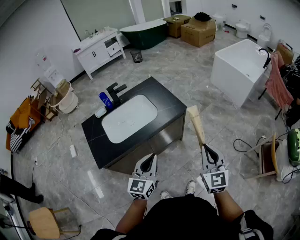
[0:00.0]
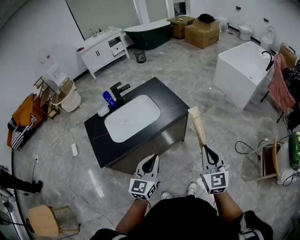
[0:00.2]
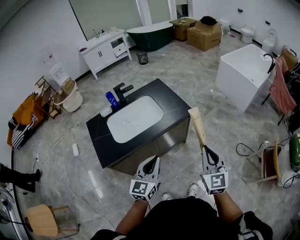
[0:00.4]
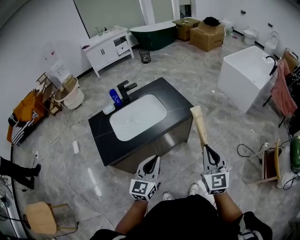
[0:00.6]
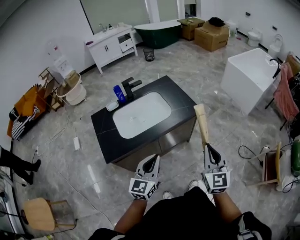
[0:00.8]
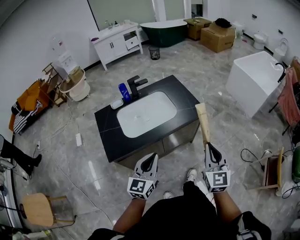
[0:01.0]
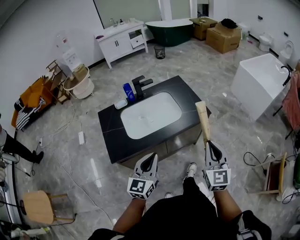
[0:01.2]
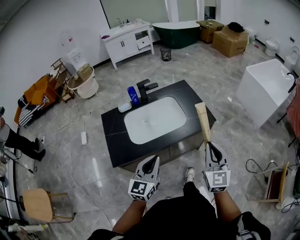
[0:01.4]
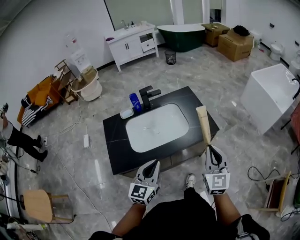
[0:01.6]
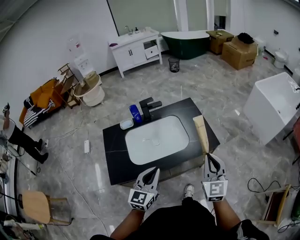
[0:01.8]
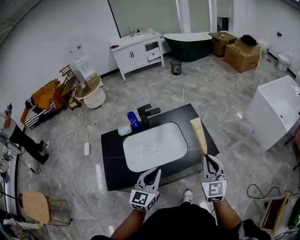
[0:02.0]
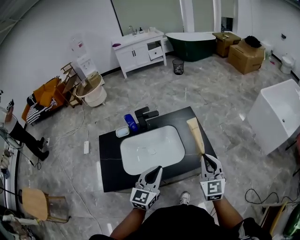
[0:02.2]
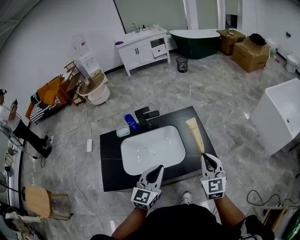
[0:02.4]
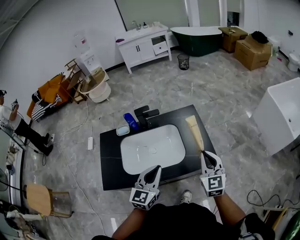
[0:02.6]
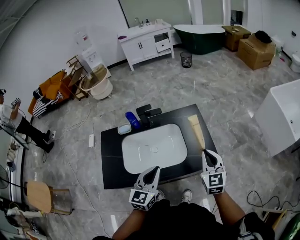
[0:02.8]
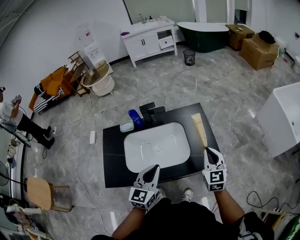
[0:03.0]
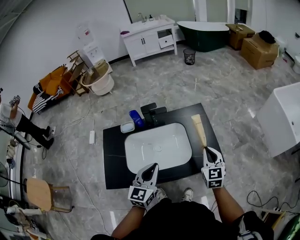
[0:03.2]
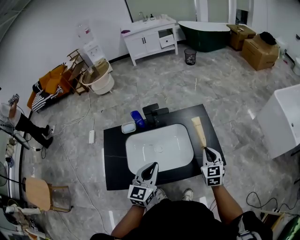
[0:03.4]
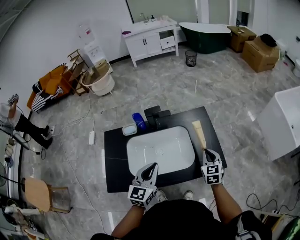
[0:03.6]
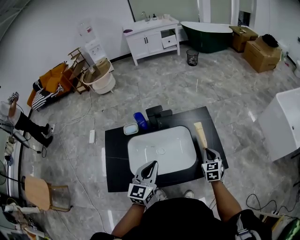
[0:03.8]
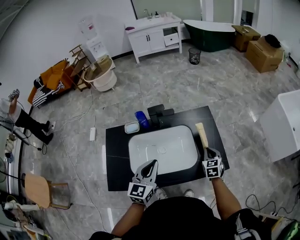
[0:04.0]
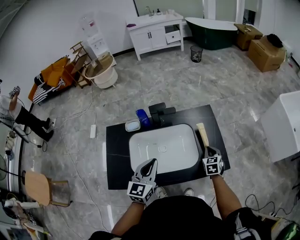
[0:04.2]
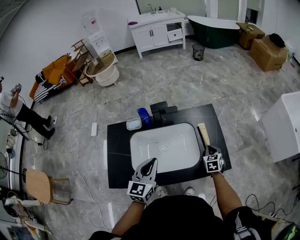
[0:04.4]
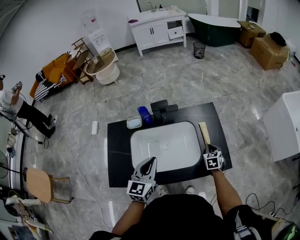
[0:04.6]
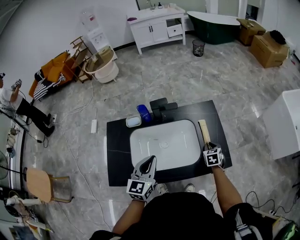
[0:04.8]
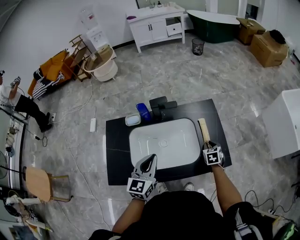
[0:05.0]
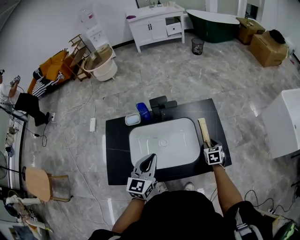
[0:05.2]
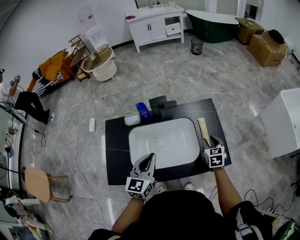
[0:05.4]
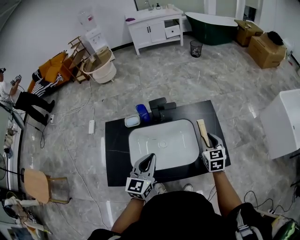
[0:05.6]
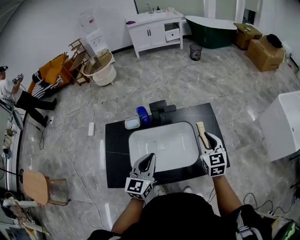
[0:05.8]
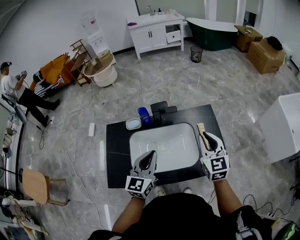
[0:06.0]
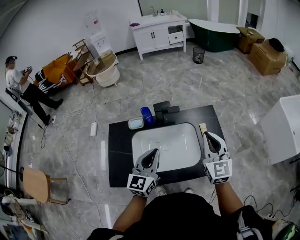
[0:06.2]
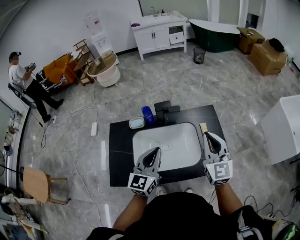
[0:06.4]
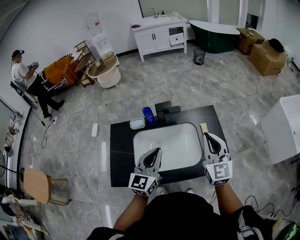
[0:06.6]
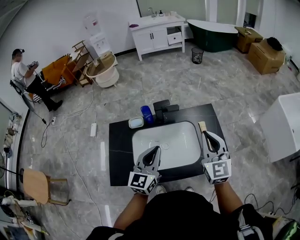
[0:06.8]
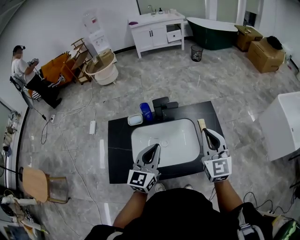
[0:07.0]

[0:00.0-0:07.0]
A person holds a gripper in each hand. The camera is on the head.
0:00.0 to 0:01.4: The left gripper moves to the left, about 10 cm. The right gripper shifts some 15 cm to the left and forward.
0:01.4 to 0:02.8: The grippers both shift forward by about 25 cm.
0:02.8 to 0:04.2: The right gripper goes approximately 20 cm downward and forward, and swivels some 30 degrees. Meanwhile the left gripper moves to the left and forward, about 10 cm.
0:04.2 to 0:05.6: The right gripper is displaced upward by some 10 cm, and opens.
0:05.6 to 0:07.0: The left gripper moves upward, some 5 cm. The right gripper is displaced upward by roughly 20 cm, changes its angle by about 30 degrees, and closes.

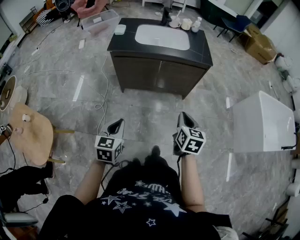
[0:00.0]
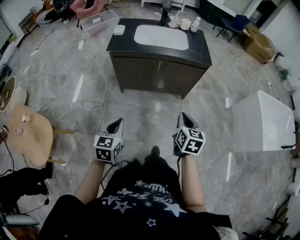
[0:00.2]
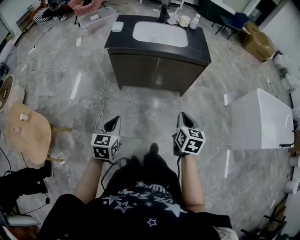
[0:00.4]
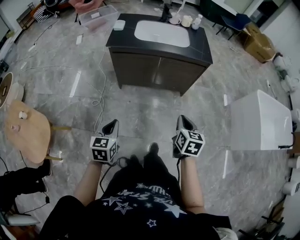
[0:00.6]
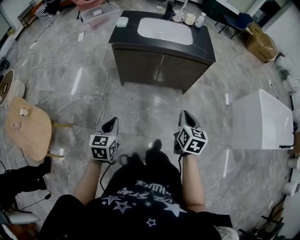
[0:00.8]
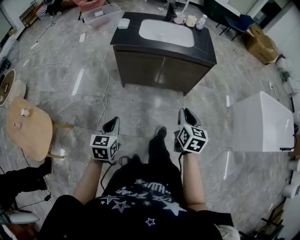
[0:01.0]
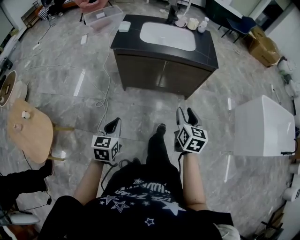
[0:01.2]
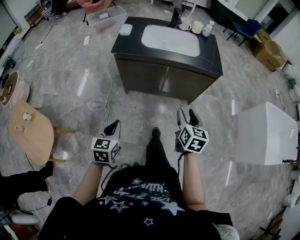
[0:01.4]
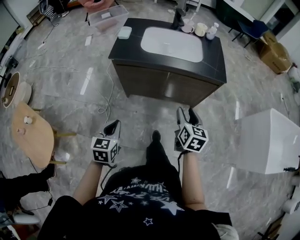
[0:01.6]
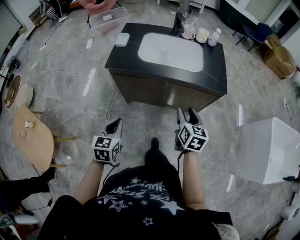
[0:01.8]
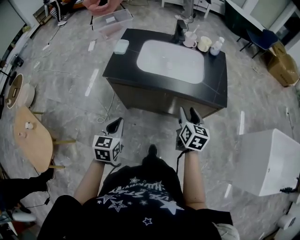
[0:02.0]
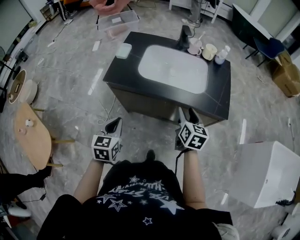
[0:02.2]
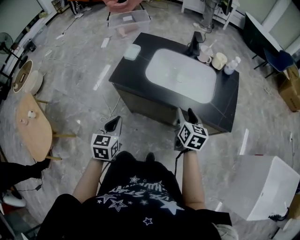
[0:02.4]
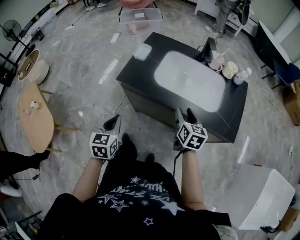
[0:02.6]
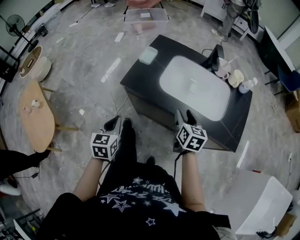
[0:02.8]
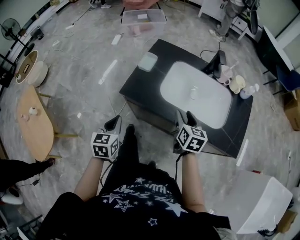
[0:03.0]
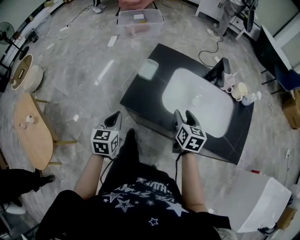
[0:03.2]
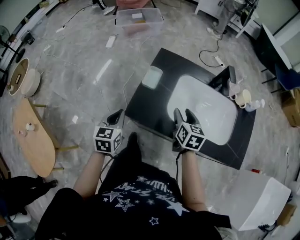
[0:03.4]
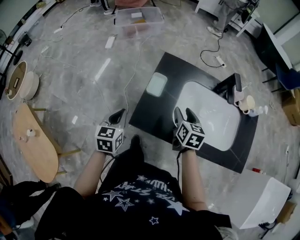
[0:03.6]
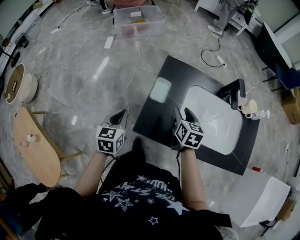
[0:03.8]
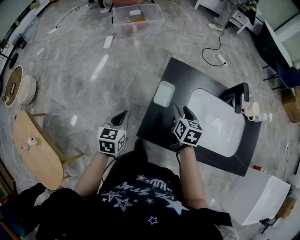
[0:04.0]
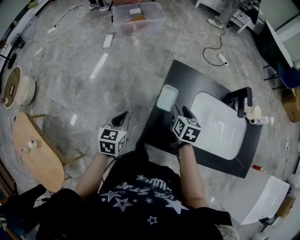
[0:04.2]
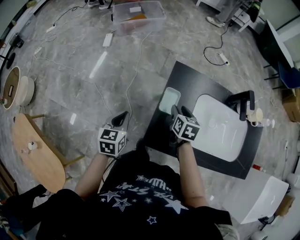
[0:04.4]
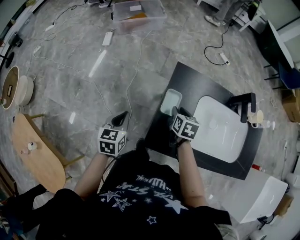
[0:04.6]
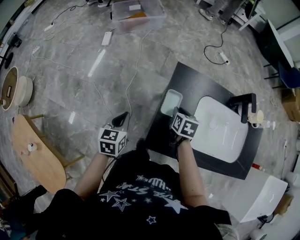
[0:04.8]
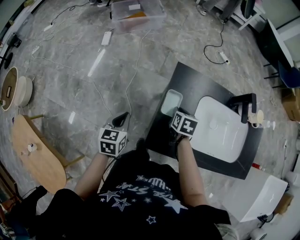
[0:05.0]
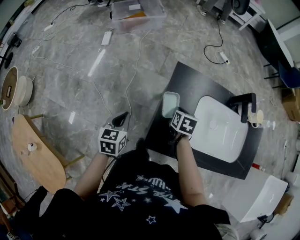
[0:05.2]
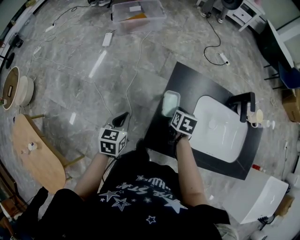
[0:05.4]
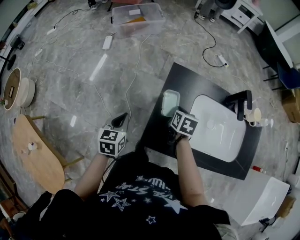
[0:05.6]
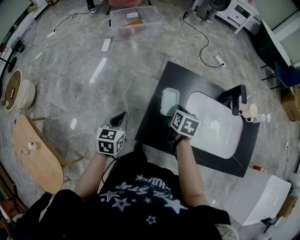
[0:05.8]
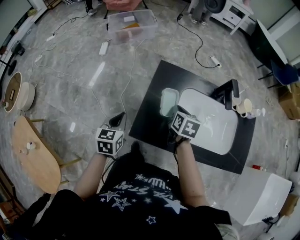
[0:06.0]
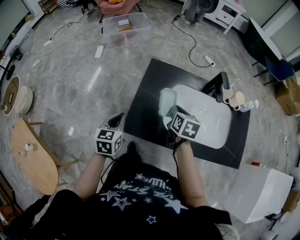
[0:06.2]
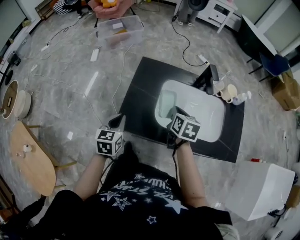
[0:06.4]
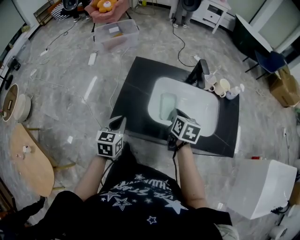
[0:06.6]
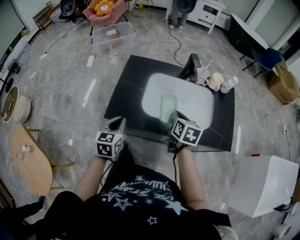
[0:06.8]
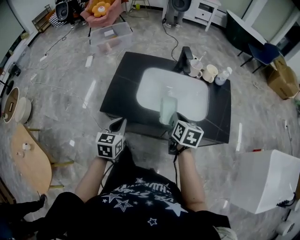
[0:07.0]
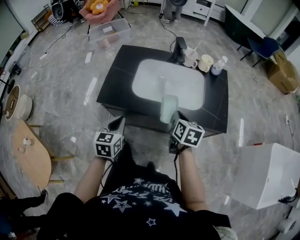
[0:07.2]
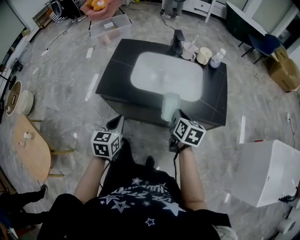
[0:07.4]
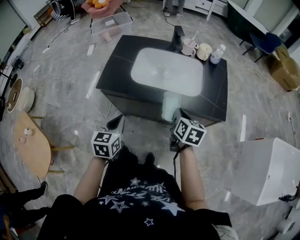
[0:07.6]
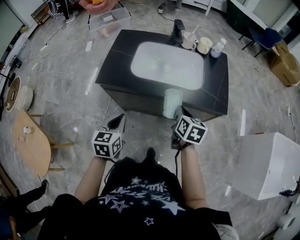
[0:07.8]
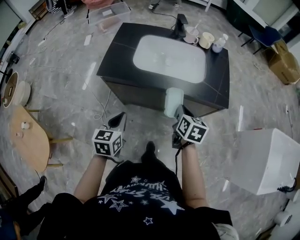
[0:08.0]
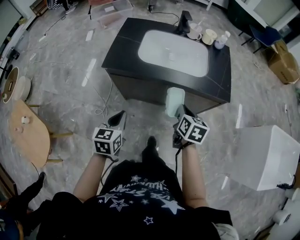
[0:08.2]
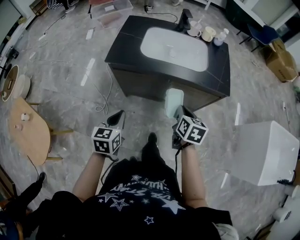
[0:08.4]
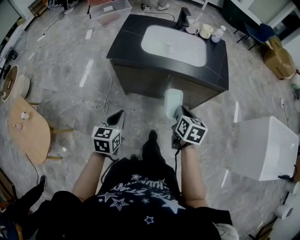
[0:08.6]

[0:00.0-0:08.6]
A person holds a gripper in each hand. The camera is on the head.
0:00.0 to 0:01.4: The right gripper goes some 10 cm forward, and opens, while the left gripper heads forward, covering approximately 5 cm.
0:01.4 to 0:02.8: The grippers both shift forward by some 35 cm. The right gripper swivels roughly 20 degrees, while the left gripper swivels approximately 20 degrees.
0:02.8 to 0:04.4: Both grippers travel together forward and to the left, about 35 cm.
0:04.4 to 0:05.8: The right gripper closes.
0:05.8 to 0:07.2: Both grippers move to the right and backward, roughly 35 cm.
0:07.2 to 0:08.6: The two grippers go roughly 25 cm backward.

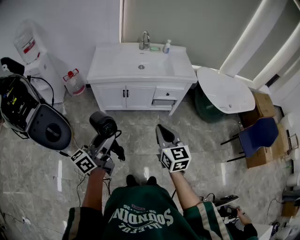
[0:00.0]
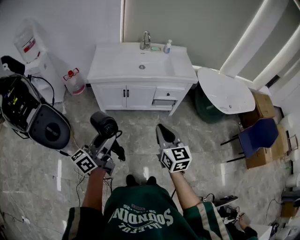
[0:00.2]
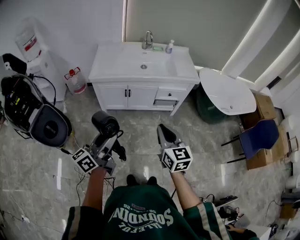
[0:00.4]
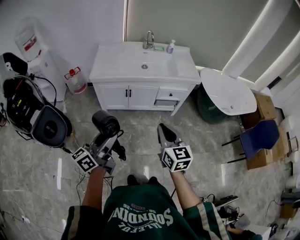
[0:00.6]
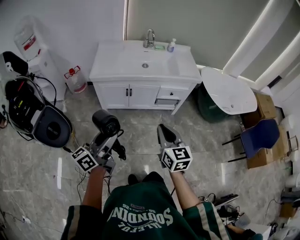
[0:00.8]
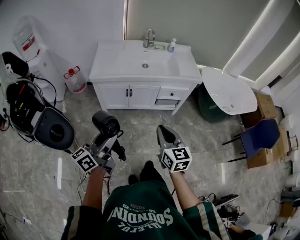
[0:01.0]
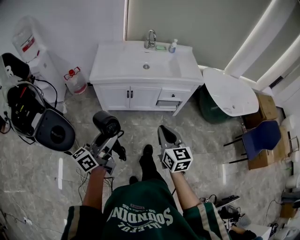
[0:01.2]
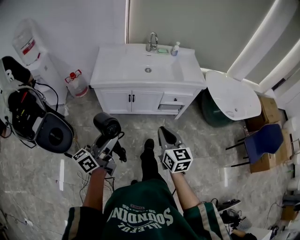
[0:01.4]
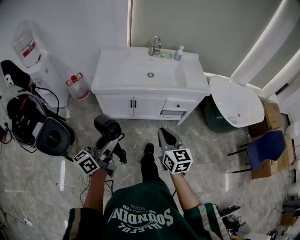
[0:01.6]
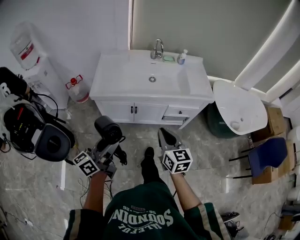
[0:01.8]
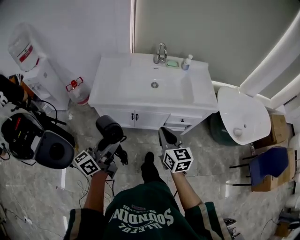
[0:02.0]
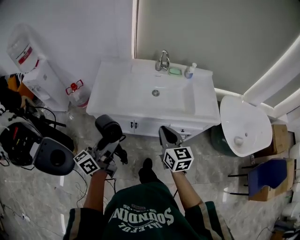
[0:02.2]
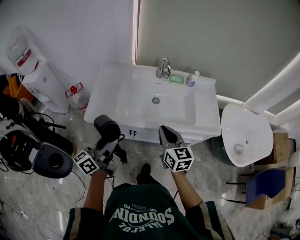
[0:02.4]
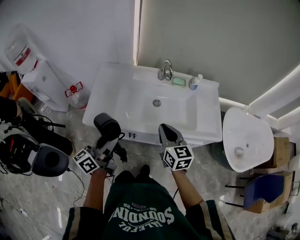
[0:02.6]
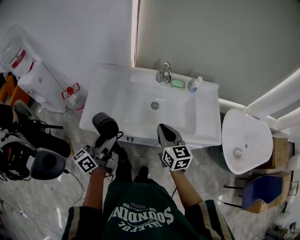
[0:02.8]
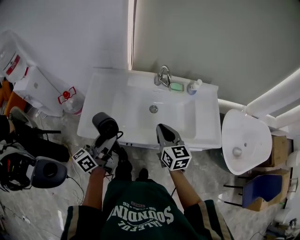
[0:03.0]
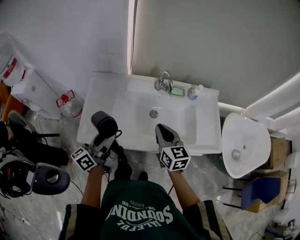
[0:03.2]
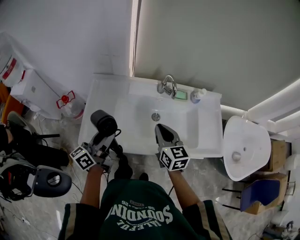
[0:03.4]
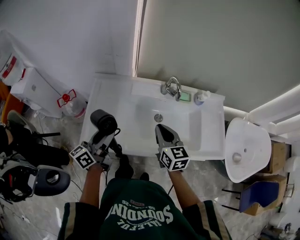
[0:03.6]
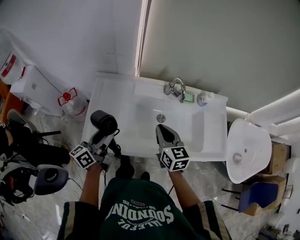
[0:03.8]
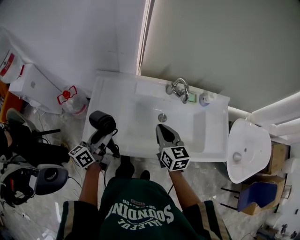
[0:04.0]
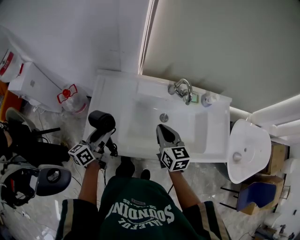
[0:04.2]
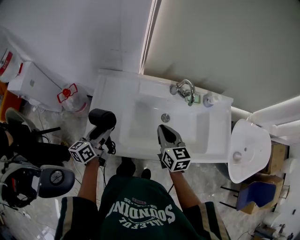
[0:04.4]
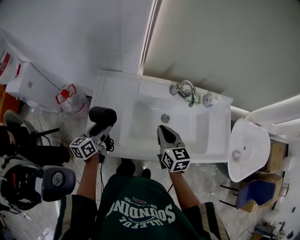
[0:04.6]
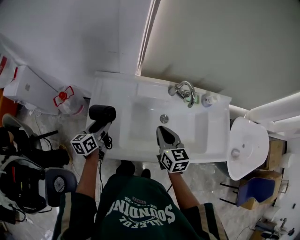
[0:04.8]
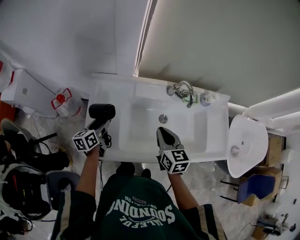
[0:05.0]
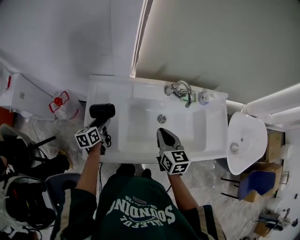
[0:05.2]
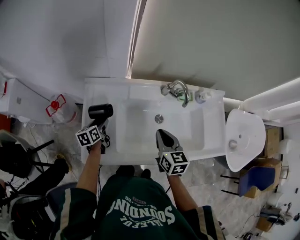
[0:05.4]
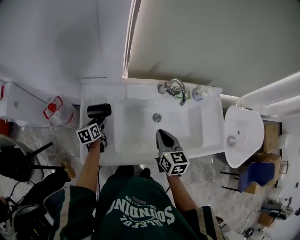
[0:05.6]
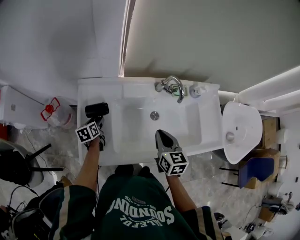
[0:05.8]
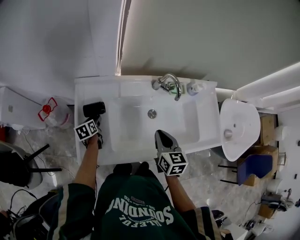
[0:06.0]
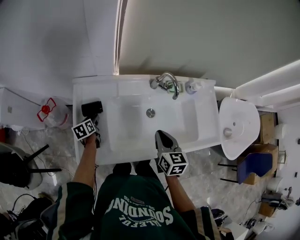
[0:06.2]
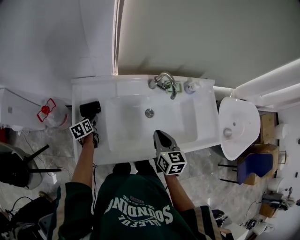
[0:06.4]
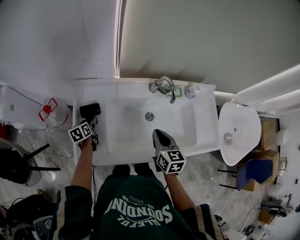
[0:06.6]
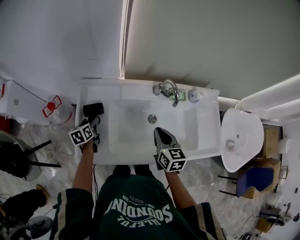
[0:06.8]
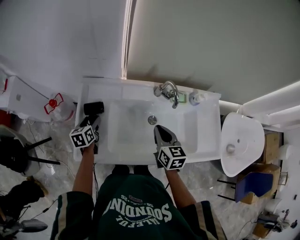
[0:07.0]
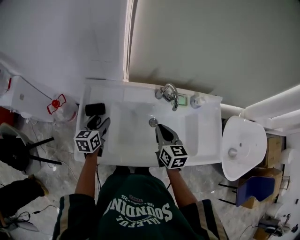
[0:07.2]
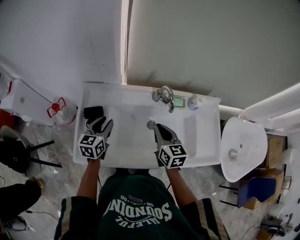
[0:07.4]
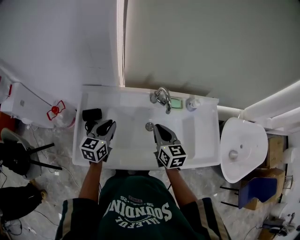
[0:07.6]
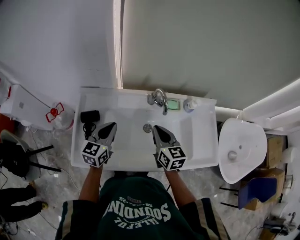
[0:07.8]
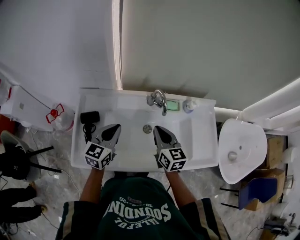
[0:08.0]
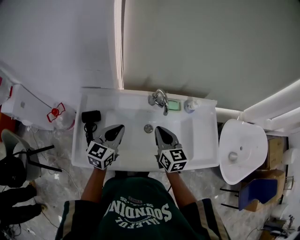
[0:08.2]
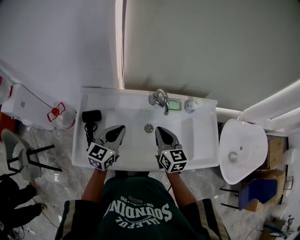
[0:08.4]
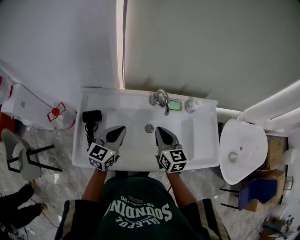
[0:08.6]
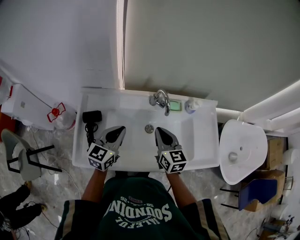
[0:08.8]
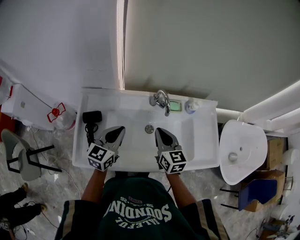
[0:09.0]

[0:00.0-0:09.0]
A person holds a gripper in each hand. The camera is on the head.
0:00.0 to 0:01.6: The left gripper heads forward and to the left, covering about 15 cm. Meanwhile the right gripper goes roughly 15 cm forward.
0:01.6 to 0:03.0: Both grippers are carried forward, roughly 40 cm.
0:03.0 to 0:04.4: The right gripper moves forward and to the left, about 15 cm; the left gripper shifts about 25 cm forward, to the left and downward, and swivels some 20 degrees.
0:04.4 to 0:06.0: The left gripper is displaced downward and forward by about 20 cm, and angles its fingers downward, by some 40 degrees.
0:06.0 to 0:07.6: The right gripper heads forward, covering about 5 cm; the left gripper moves upward and to the right, approximately 25 cm, rotates some 40 degrees, and closes its fingers.
0:07.6 to 0:09.0: The left gripper travels to the right by about 5 cm.
